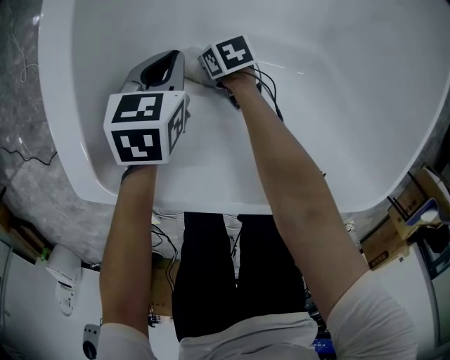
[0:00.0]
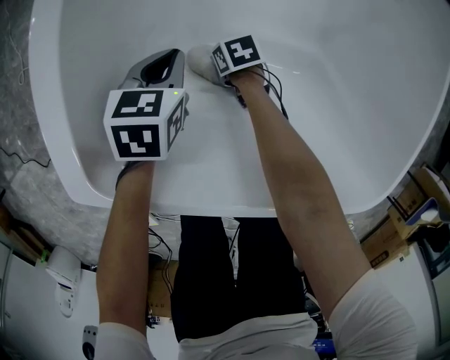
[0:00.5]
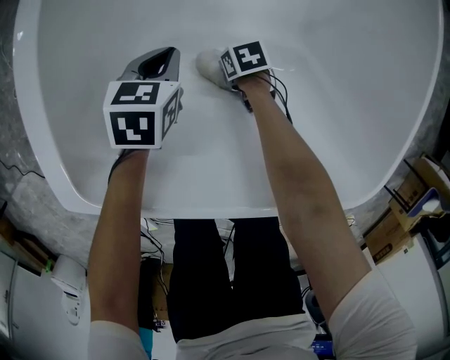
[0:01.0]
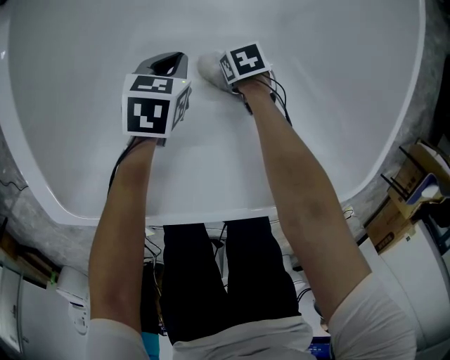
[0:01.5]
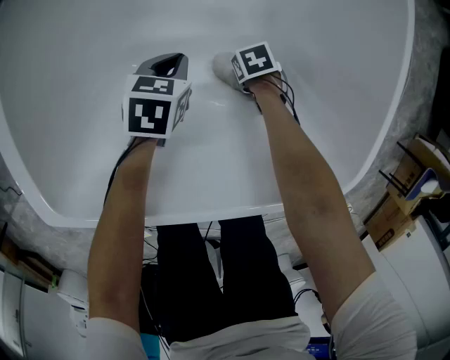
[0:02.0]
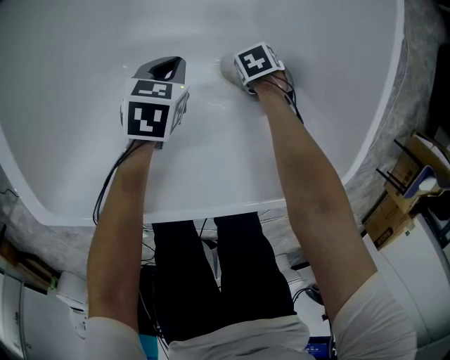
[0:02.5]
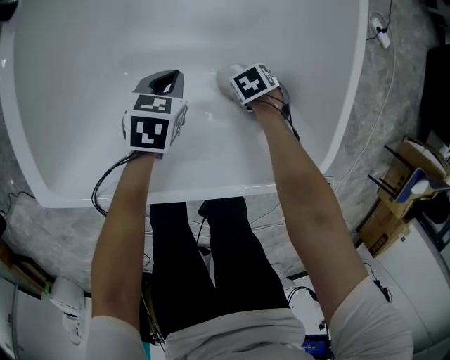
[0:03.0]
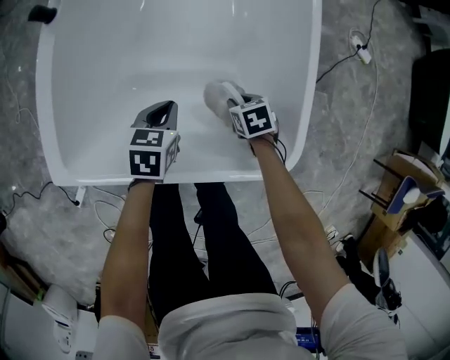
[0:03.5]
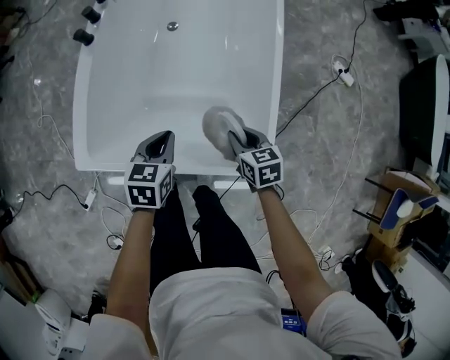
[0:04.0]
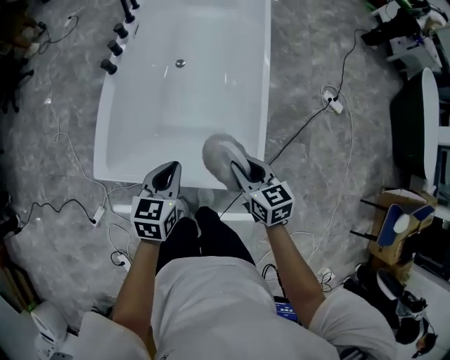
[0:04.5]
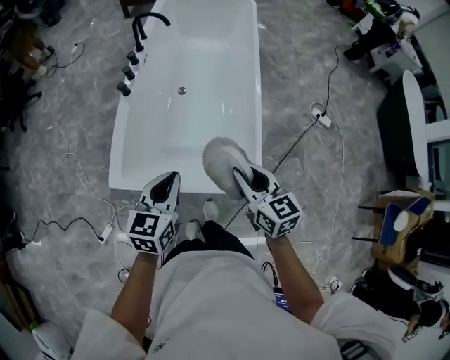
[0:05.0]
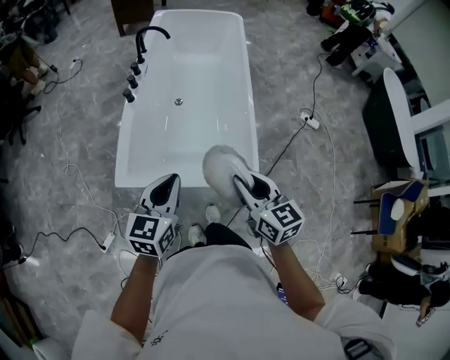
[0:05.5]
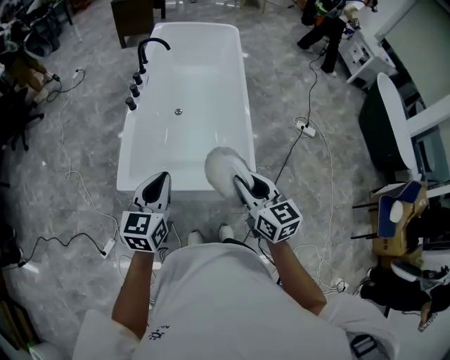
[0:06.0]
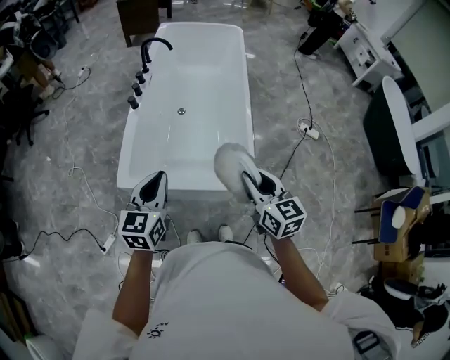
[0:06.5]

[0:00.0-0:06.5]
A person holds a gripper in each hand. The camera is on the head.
0:00.0 to 0:02.0: The right gripper changes place by approximately 30 cm, and changes its angle by some 20 degrees, while the left gripper shifts by roughly 15 cm.
0:02.0 to 0:04.5: Both grippers travel together upward, some 50 cm. The right gripper points its fingers about 40 degrees further upward, while the left gripper changes its angle by roughly 30 degrees.
0:04.5 to 0:06.5: Both grippers travel together upward and backward, about 25 cm. The left gripper changes its angle by some 20 degrees, while the right gripper turns by about 20 degrees.

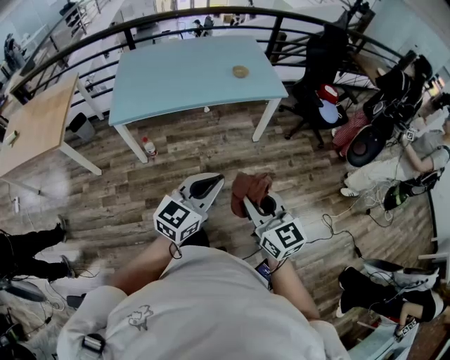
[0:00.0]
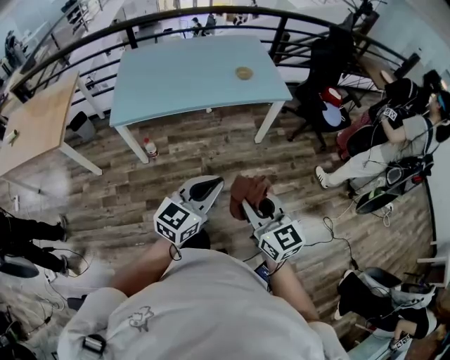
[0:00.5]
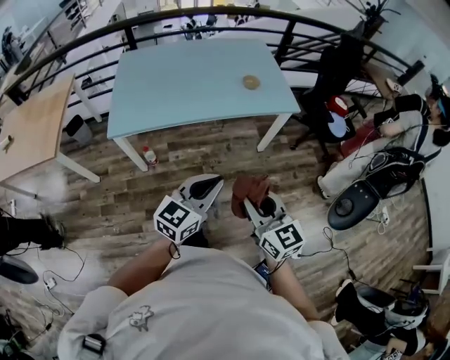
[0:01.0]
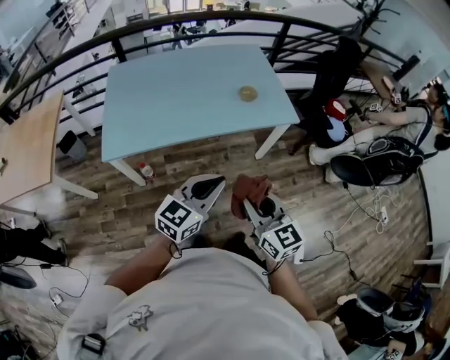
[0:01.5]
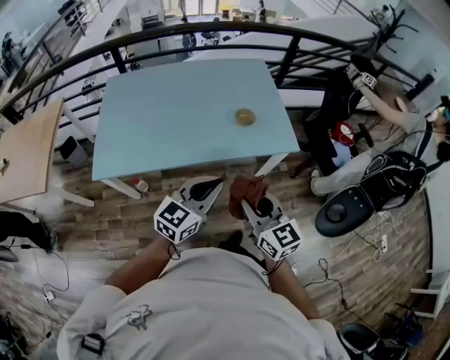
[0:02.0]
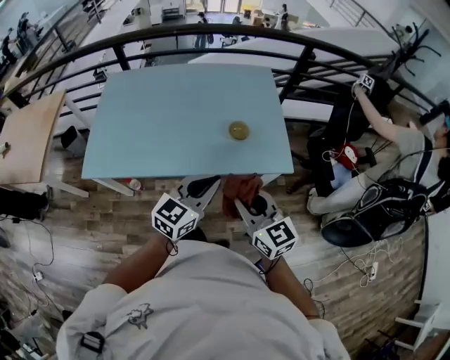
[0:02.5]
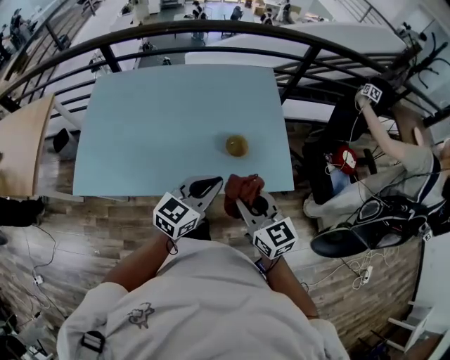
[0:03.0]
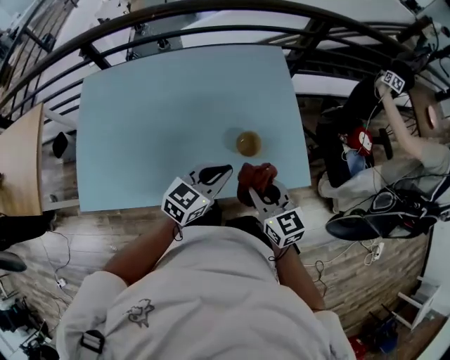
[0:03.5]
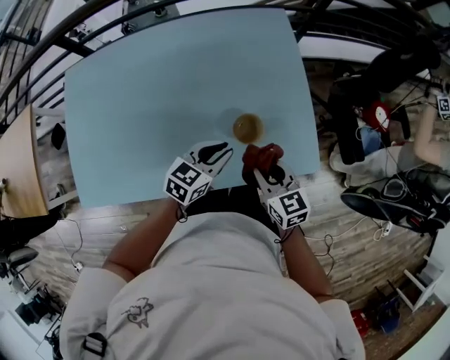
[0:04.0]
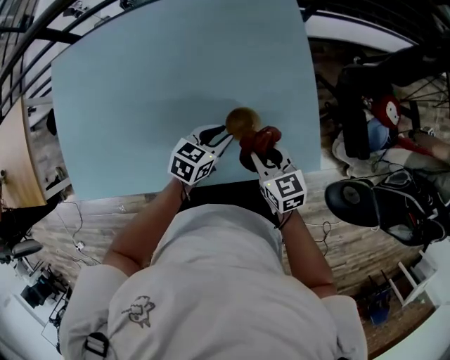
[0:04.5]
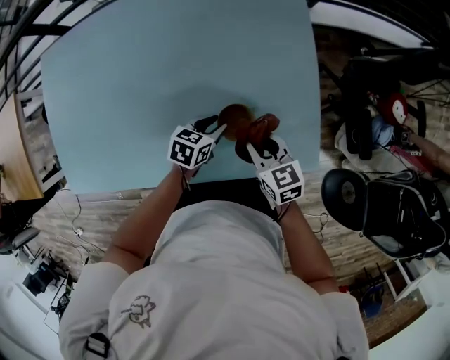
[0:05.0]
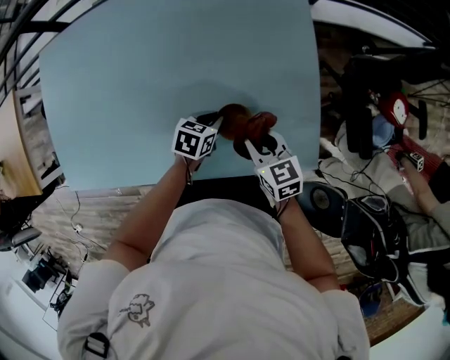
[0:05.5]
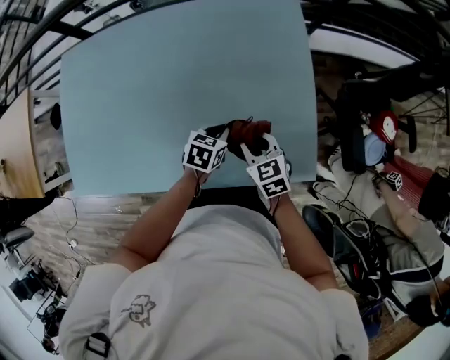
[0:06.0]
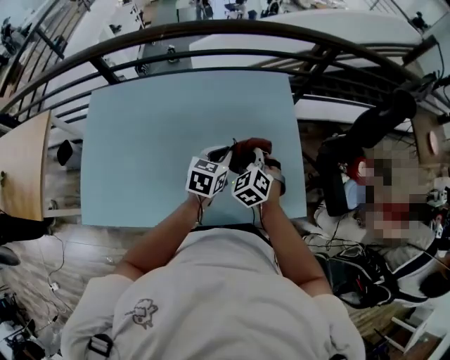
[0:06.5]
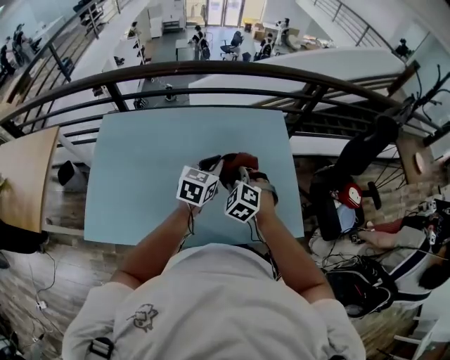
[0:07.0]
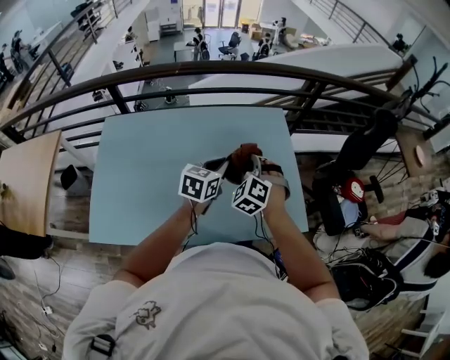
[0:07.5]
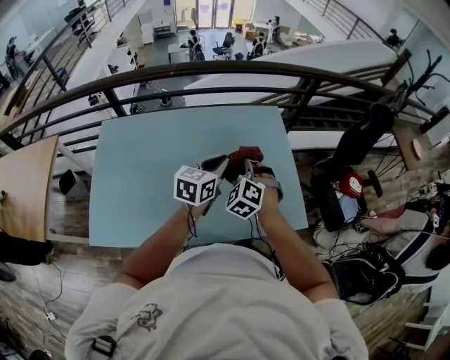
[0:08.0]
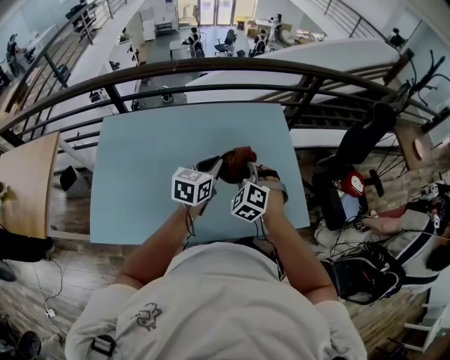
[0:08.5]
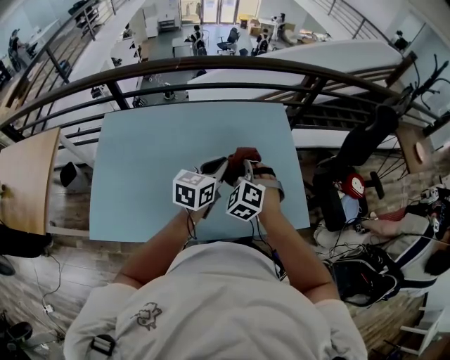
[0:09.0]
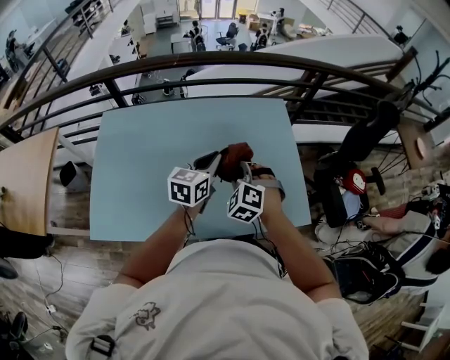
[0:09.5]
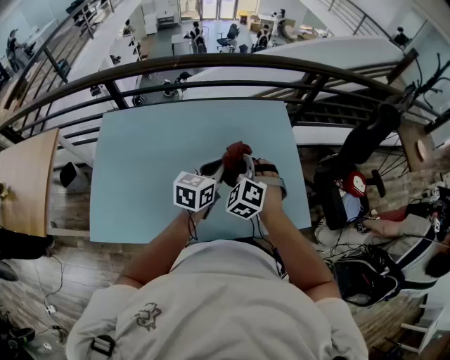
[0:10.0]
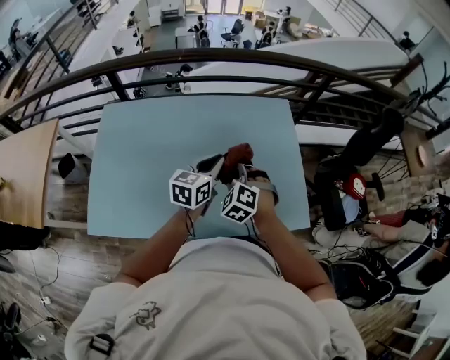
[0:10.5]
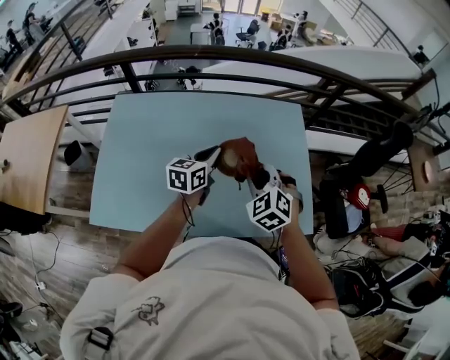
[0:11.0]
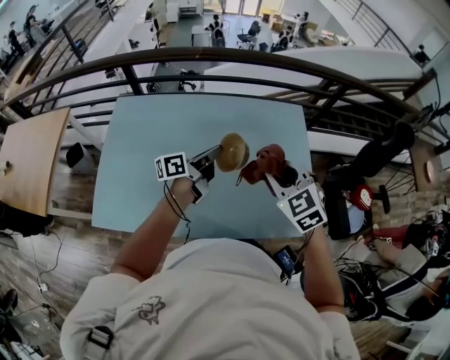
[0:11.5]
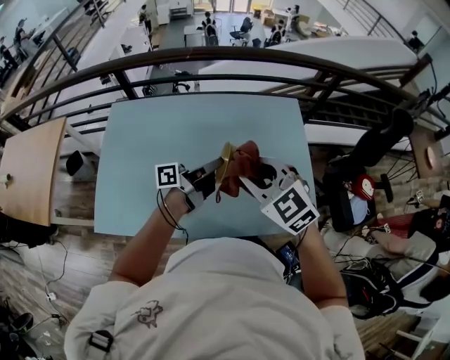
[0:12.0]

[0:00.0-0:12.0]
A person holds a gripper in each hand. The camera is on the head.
0:00.0 to 0:02.0: The two grippers travel together, forward, some 40 cm.
0:02.0 to 0:04.0: The two grippers travel together, forward, some 40 cm. Both grippers travel together downward, roughly 15 cm. The left gripper changes its angle by roughly 30 degrees, while the right gripper swivels roughly 20 degrees.
0:04.0 to 0:06.0: Both grippers travel together downward and forward, about 15 cm. The left gripper turns by roughly 30 degrees.
0:06.0 to 0:08.0: The right gripper travels upward and to the left by approximately 25 cm, and twists approximately 50 degrees counterclockwise, seen from behind. Meanwhile the left gripper heads upward, covering approximately 30 cm, and points its fingers approximately 30 degrees further upward.
0:08.0 to 0:10.0: There are only small adjustments of the grippers.
0:10.0 to 0:12.0: The right gripper heads upward and backward, covering about 15 cm, and turns by some 40 degrees. The left gripper rolls counterclockwise, seen from behind, by about 50 degrees.

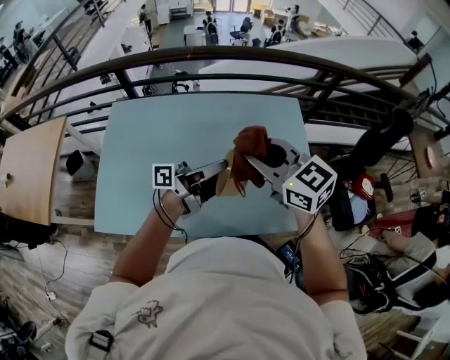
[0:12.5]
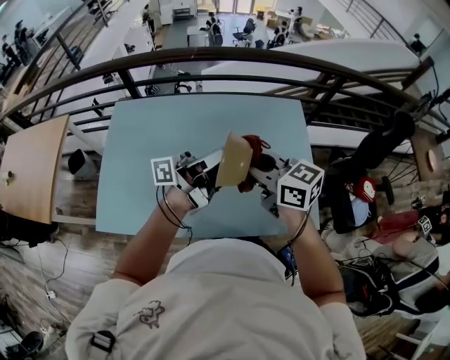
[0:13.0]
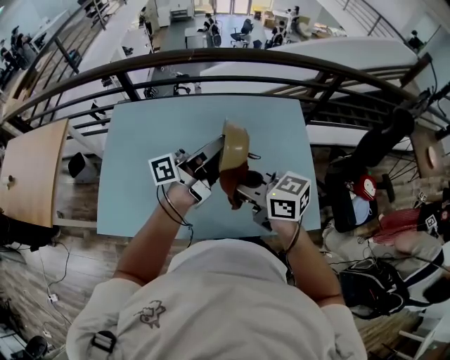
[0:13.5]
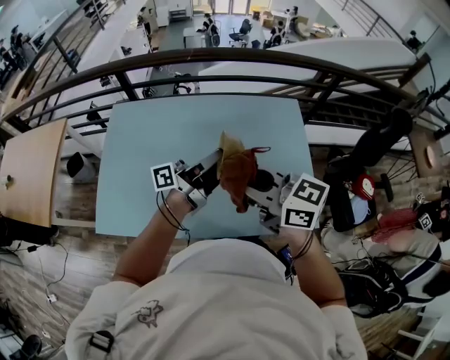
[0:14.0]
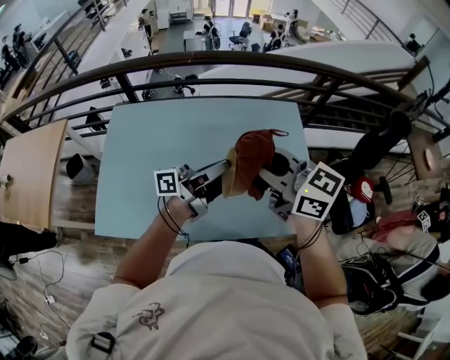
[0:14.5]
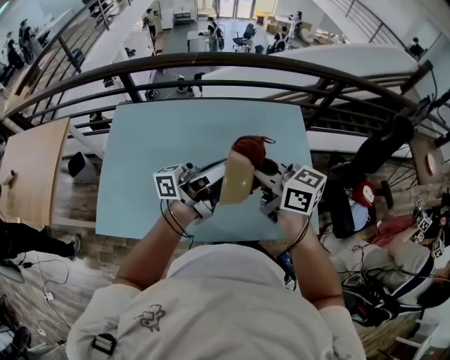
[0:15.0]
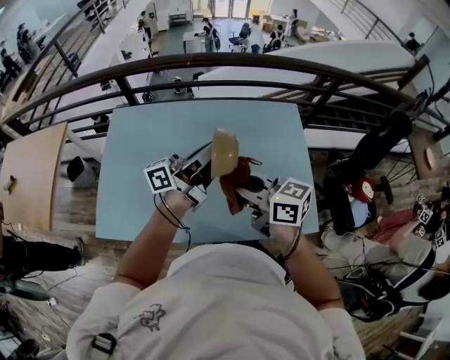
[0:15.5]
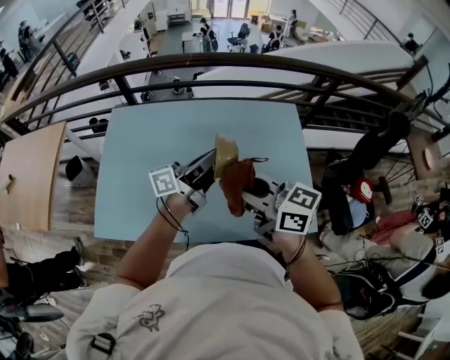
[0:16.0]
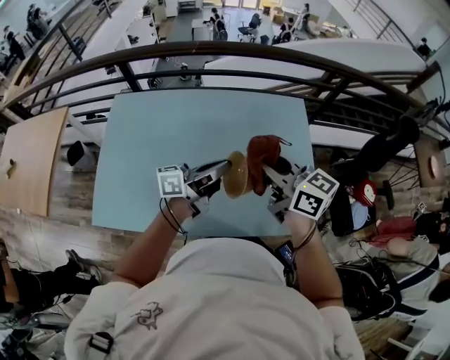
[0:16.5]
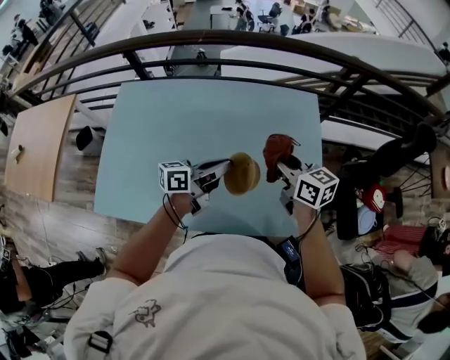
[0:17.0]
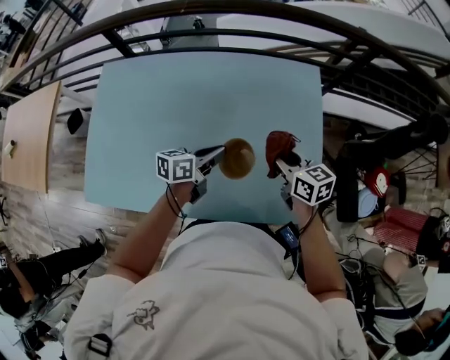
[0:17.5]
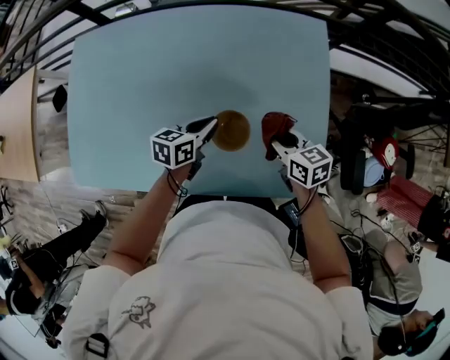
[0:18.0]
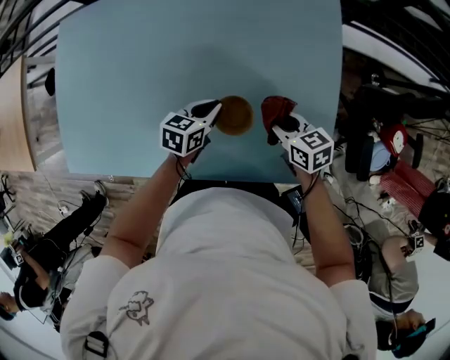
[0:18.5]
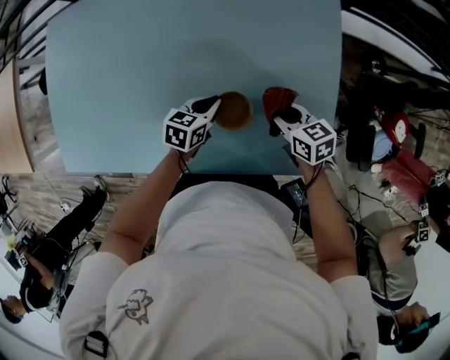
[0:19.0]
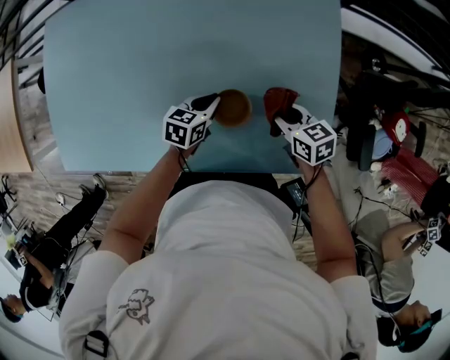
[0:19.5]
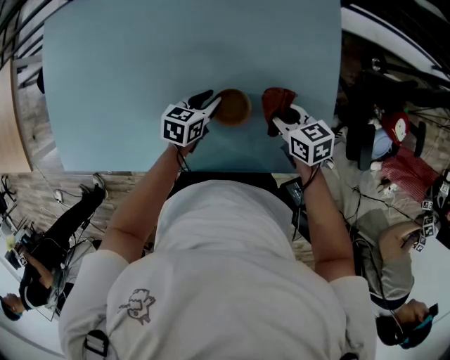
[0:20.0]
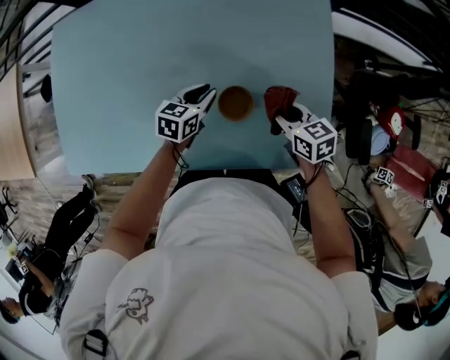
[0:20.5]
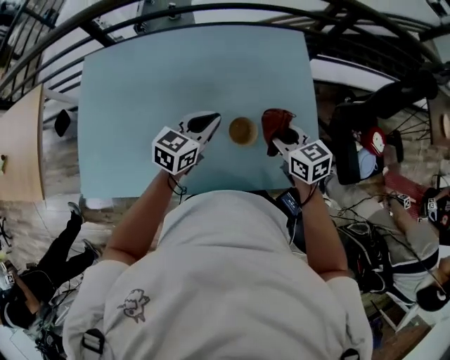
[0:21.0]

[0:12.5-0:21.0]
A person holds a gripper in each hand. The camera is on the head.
0:12.5 to 0:14.5: The left gripper goes upward and returns, approximately 10 cm each way.
0:14.5 to 0:16.5: The left gripper changes place by approximately 5 cm. Meanwhile the right gripper goes approximately 5 cm downward.
0:16.5 to 0:19.0: The two grippers go some 40 cm downward. The right gripper angles its fingers downward, by roughly 40 degrees; the left gripper tips its fingers downward by some 60 degrees.
0:19.0 to 0:21.0: Both grippers move upward, roughly 20 cm. The left gripper rotates about 30 degrees, and opens, then closes again.
